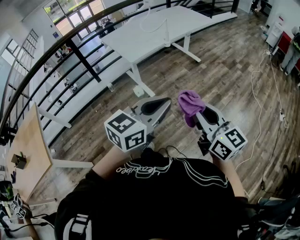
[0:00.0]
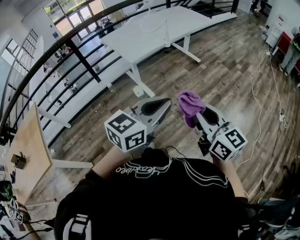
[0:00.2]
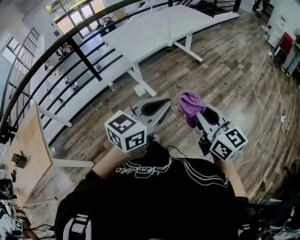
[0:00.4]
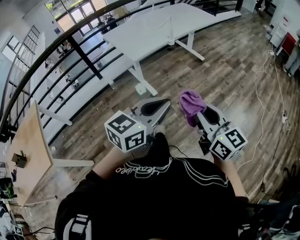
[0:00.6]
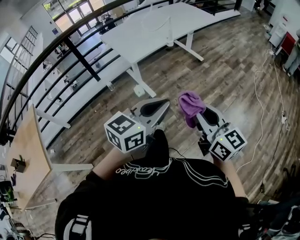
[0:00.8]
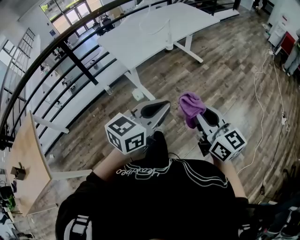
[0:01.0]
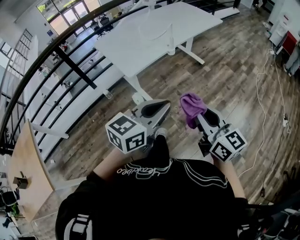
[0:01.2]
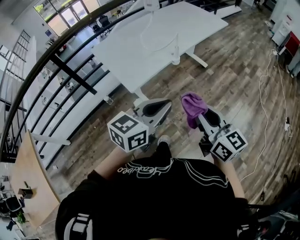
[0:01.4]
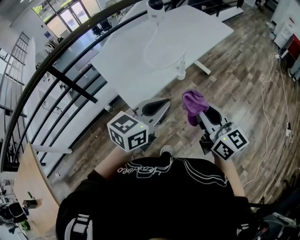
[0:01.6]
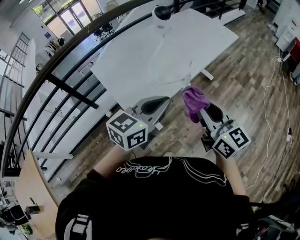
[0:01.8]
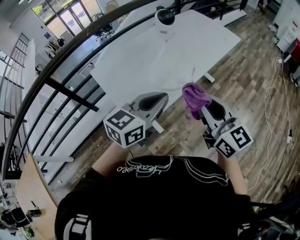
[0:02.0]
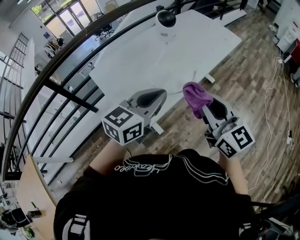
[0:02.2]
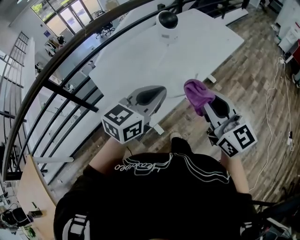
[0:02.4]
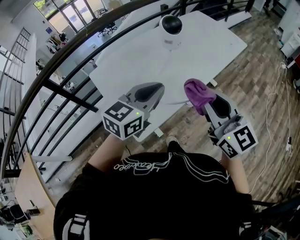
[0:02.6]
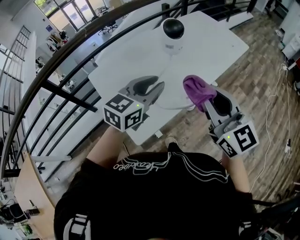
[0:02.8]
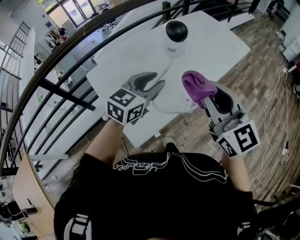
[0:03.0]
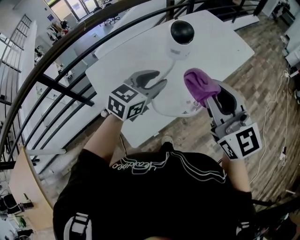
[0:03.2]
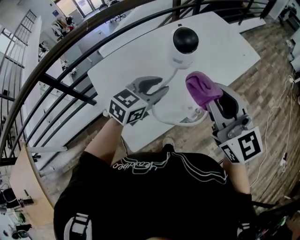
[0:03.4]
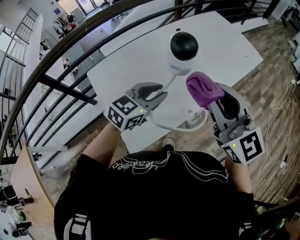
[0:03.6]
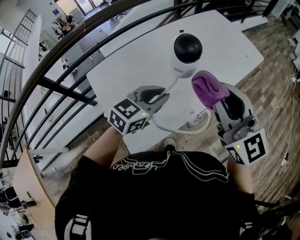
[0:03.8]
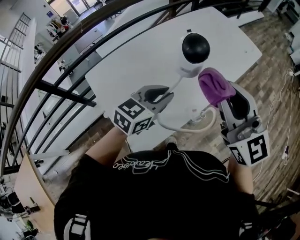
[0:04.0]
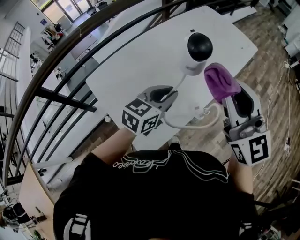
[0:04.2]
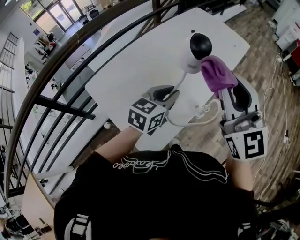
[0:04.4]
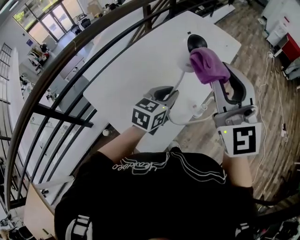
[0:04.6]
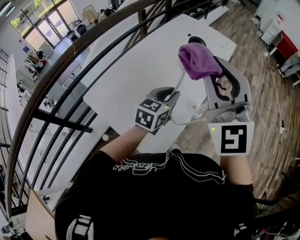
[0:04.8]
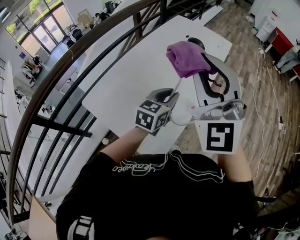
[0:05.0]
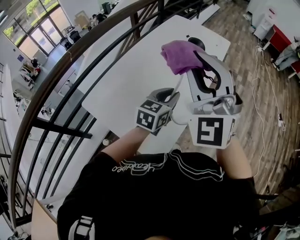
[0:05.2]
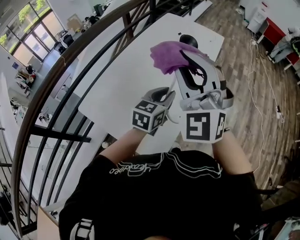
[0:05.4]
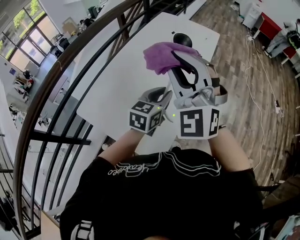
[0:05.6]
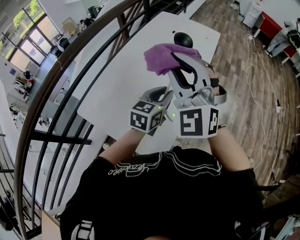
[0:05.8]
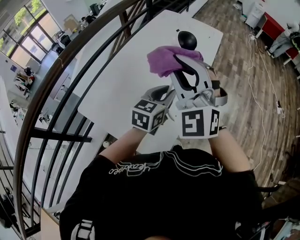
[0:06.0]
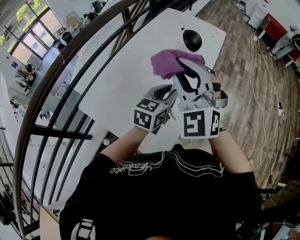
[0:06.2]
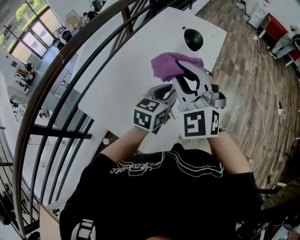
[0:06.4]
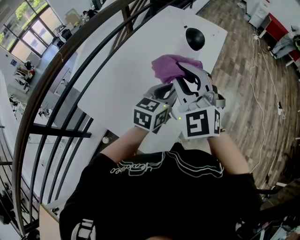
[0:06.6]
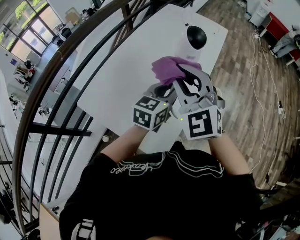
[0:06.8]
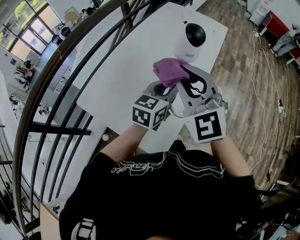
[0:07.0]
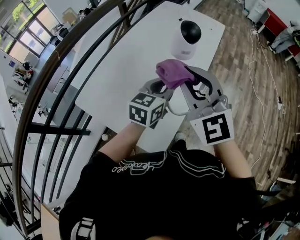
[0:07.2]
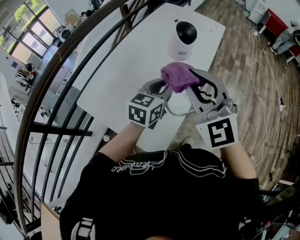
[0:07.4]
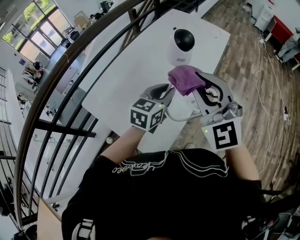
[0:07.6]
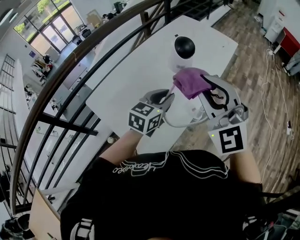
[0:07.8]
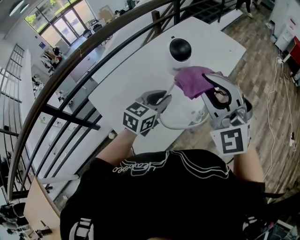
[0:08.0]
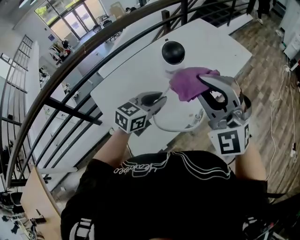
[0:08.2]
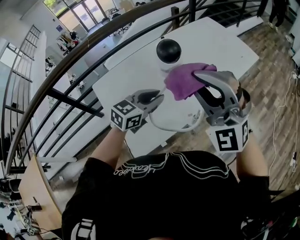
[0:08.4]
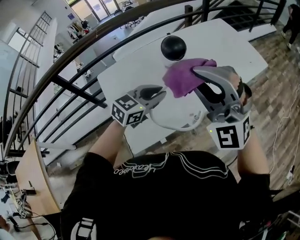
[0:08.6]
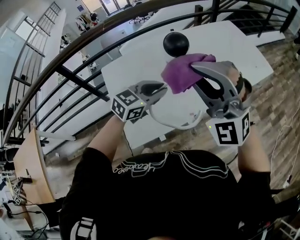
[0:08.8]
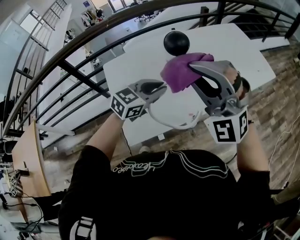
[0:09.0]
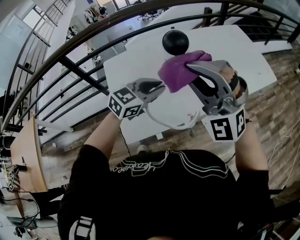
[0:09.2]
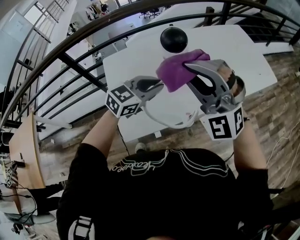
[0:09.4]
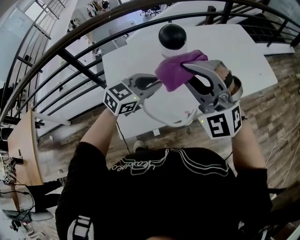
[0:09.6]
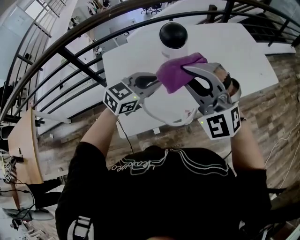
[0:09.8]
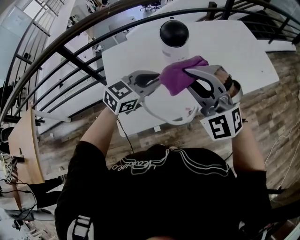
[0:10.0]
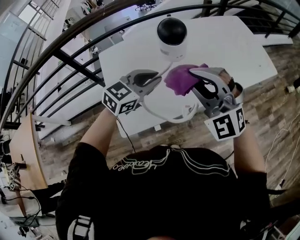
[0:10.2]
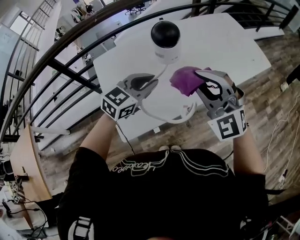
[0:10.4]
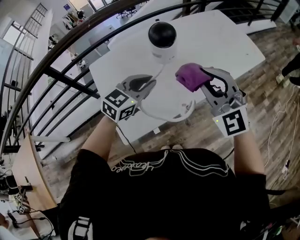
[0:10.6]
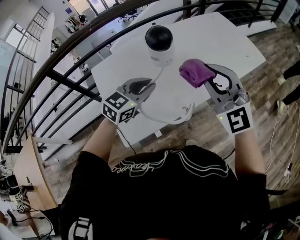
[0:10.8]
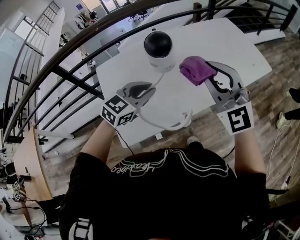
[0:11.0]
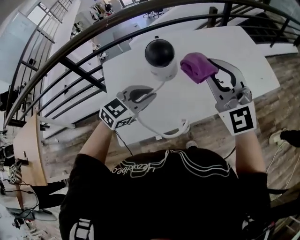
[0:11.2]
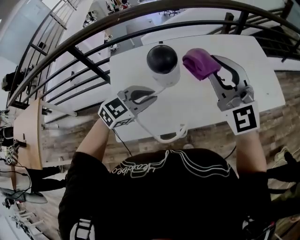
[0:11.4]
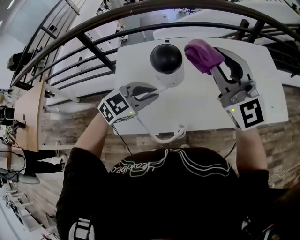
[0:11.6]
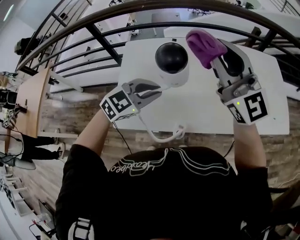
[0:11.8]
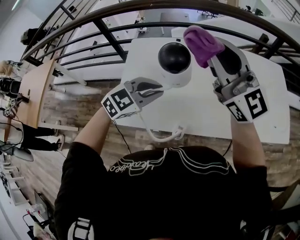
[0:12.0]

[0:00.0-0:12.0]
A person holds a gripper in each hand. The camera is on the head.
0.0 to 1.6 s: The two grippers travel together, forward, about 50 cm.
1.6 to 3.0 s: Both grippers travel together forward, approximately 30 cm. The left gripper opens up, while the right gripper changes its angle by some 20 degrees.
3.0 to 4.4 s: The left gripper travels downward by about 5 cm. The right gripper goes roughly 5 cm forward, and turns by some 20 degrees.
4.4 to 6.0 s: The right gripper is displaced to the left by roughly 10 cm, and turns by some 40 degrees.
6.0 to 7.6 s: The right gripper goes approximately 5 cm to the right.
7.6 to 9.0 s: The right gripper moves about 5 cm, and rotates approximately 50 degrees.
9.0 to 10.4 s: The right gripper is displaced downward by about 10 cm, and changes its angle by some 20 degrees.
10.4 to 12.0 s: The left gripper changes its angle by about 20 degrees. The right gripper moves approximately 20 cm, and changes its angle by some 60 degrees.

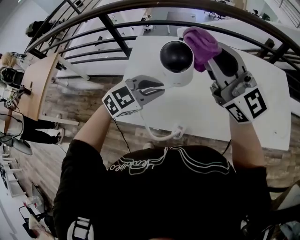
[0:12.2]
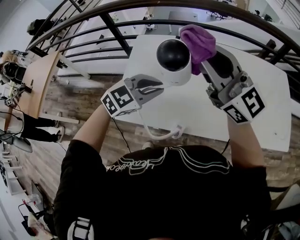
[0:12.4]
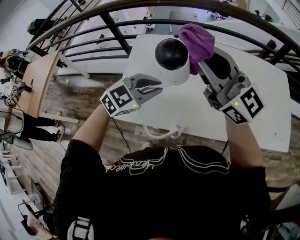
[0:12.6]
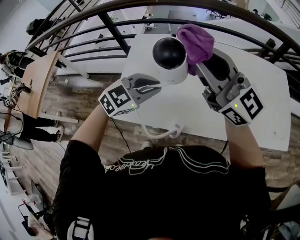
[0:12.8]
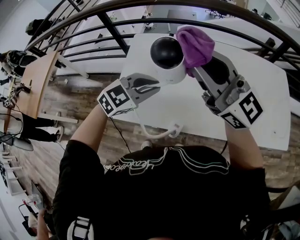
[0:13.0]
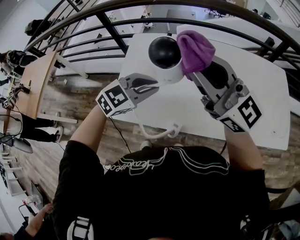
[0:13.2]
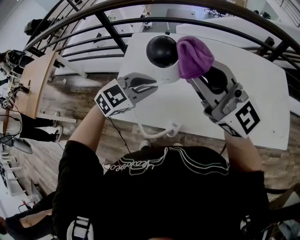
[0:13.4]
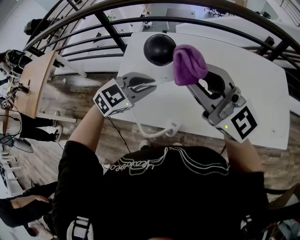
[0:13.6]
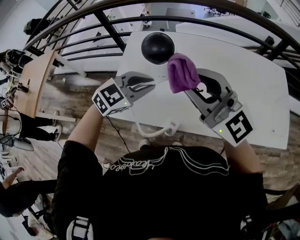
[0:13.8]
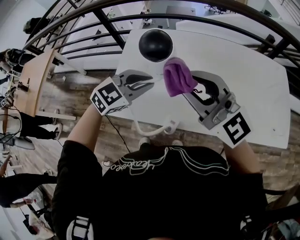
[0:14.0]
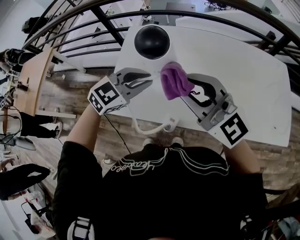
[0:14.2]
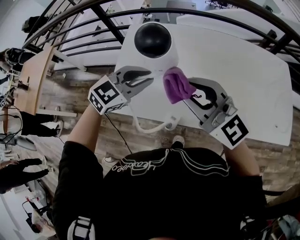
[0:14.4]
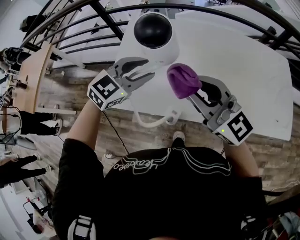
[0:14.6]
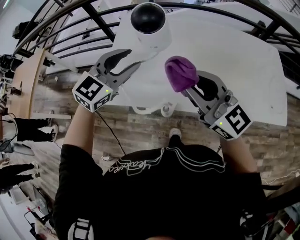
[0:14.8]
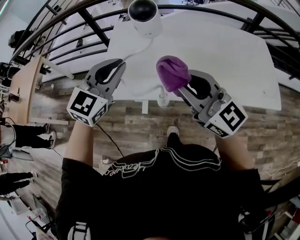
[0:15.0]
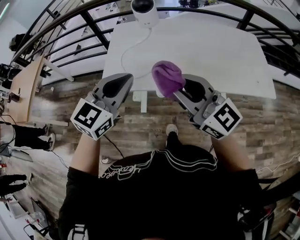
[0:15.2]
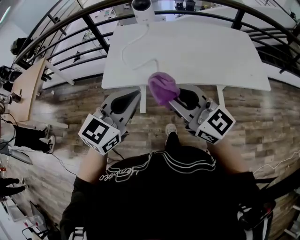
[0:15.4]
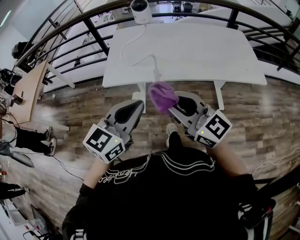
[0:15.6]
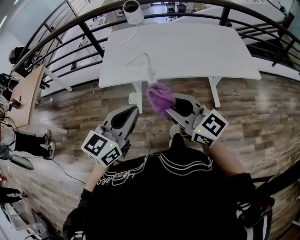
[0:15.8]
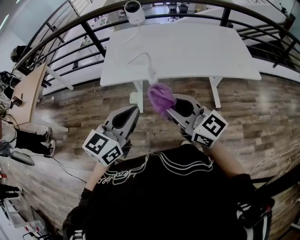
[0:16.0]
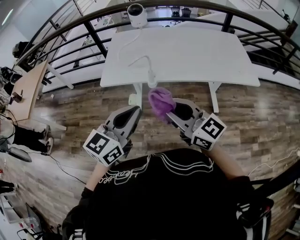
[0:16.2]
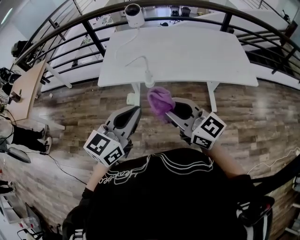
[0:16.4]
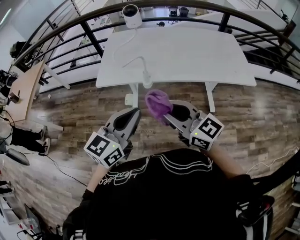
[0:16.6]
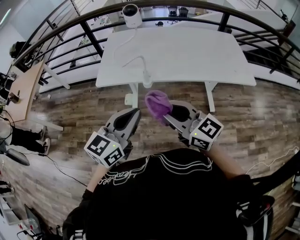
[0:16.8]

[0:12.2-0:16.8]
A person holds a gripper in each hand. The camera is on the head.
12.2 to 13.8 s: The right gripper moves backward and downward, approximately 10 cm.
13.8 to 15.2 s: The right gripper is displaced backward by about 25 cm; the left gripper travels backward and upward by some 25 cm, swivels approximately 30 degrees, and opens, then closes once more.
15.2 to 16.8 s: Both grippers travel together backward, some 20 cm. The left gripper swivels about 20 degrees.

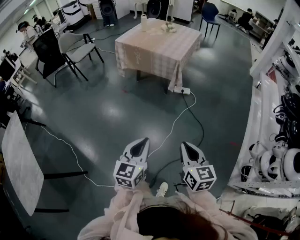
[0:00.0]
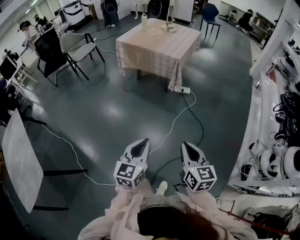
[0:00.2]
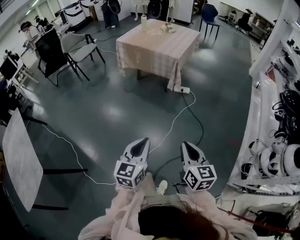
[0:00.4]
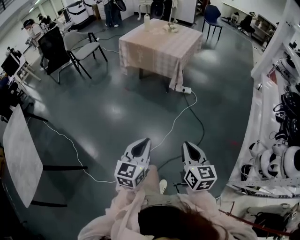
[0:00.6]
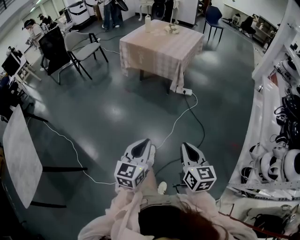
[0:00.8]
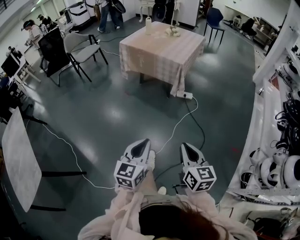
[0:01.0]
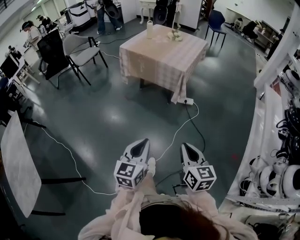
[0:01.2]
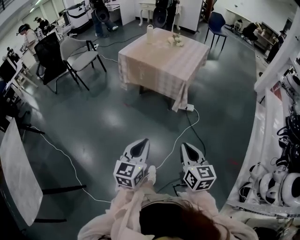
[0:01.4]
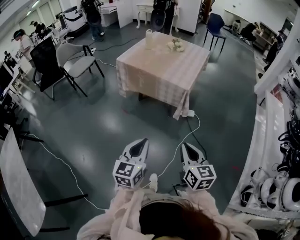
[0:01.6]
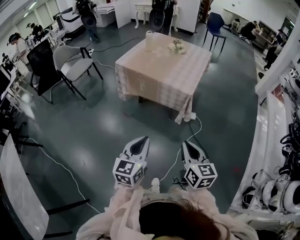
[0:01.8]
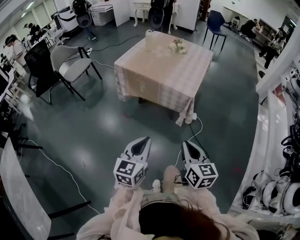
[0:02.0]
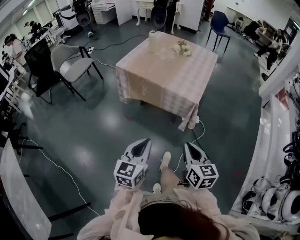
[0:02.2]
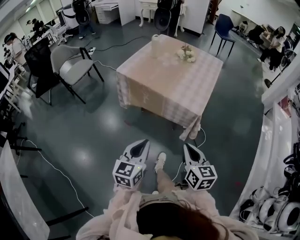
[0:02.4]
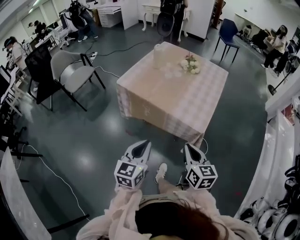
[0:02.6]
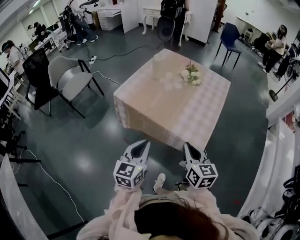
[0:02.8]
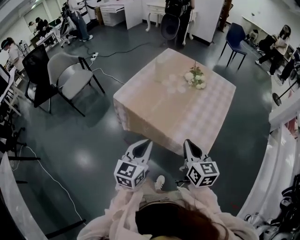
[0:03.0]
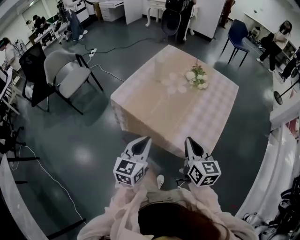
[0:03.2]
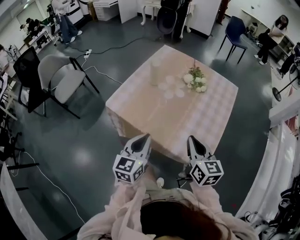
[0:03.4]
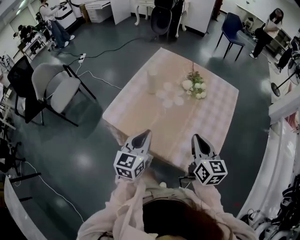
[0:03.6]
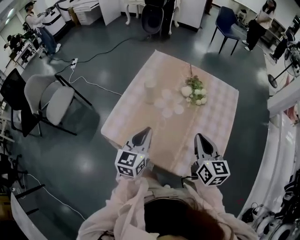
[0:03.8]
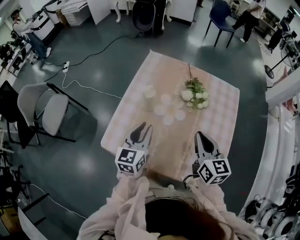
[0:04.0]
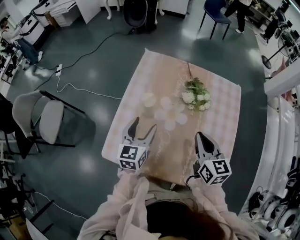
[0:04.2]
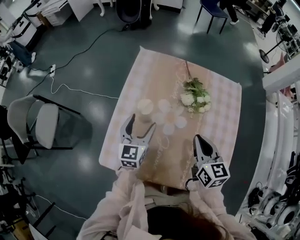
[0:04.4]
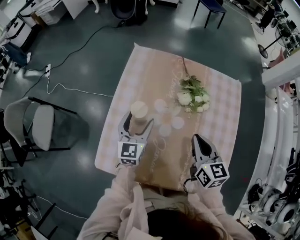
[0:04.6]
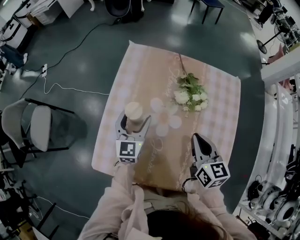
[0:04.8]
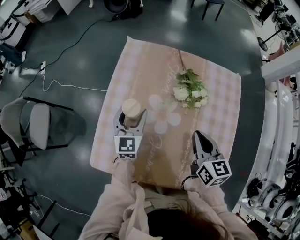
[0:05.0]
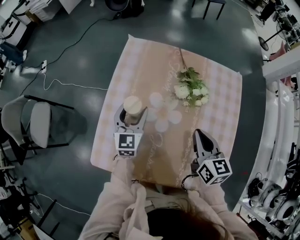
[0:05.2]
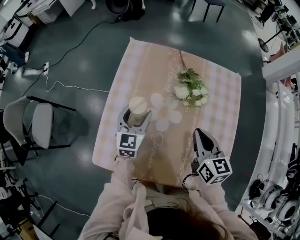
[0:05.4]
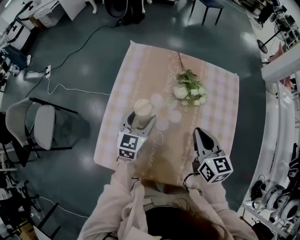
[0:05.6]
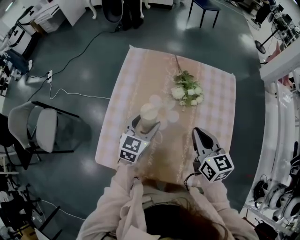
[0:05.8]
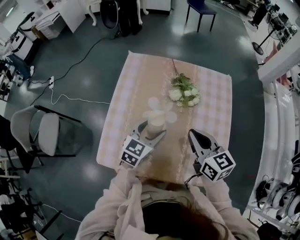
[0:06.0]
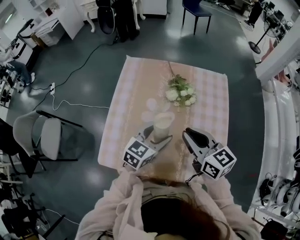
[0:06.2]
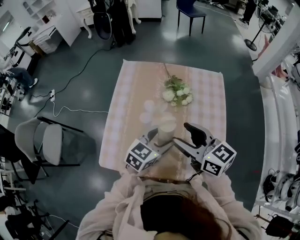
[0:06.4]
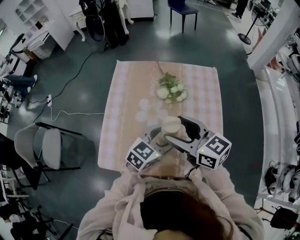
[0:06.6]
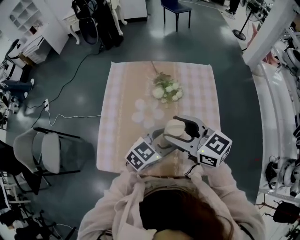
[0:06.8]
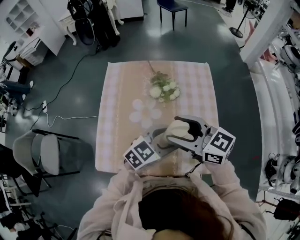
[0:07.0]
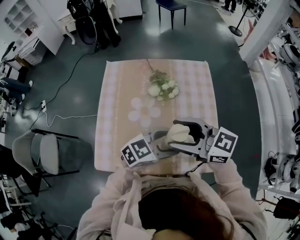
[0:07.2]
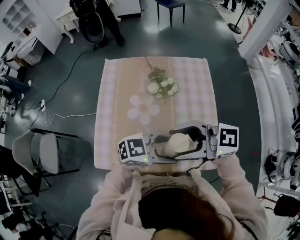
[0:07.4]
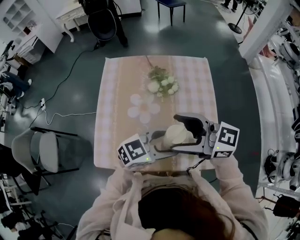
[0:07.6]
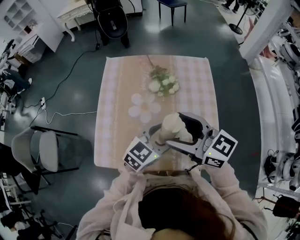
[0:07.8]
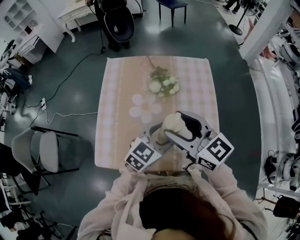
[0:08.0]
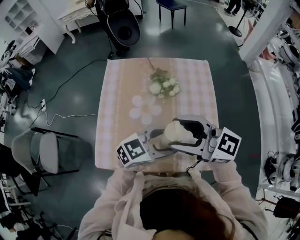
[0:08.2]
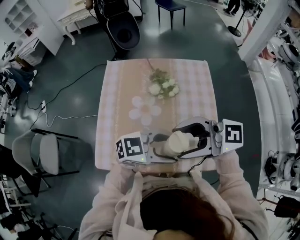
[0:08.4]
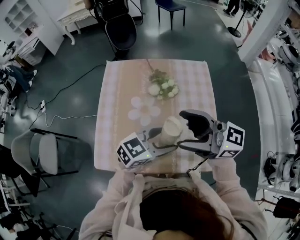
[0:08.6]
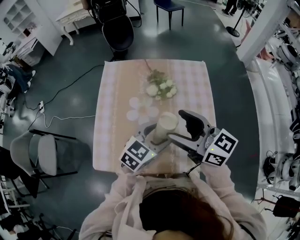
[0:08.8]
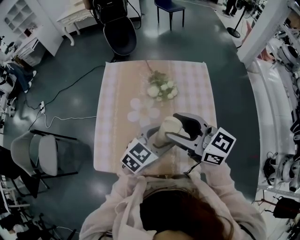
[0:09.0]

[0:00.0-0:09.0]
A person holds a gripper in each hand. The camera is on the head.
0.0 to 1.6 s: The grippers both shift forward by about 25 cm.
1.6 to 3.0 s: Both grippers are carried forward, some 50 cm.
3.0 to 4.4 s: Both grippers travel together forward, approximately 40 cm. The left gripper opens its fingers.
4.4 to 6.0 s: The left gripper shifts roughly 10 cm to the right, and rotates about 30 degrees.
6.0 to 7.6 s: The left gripper moves roughly 20 cm, and rotates approximately 50 degrees, while the right gripper moves upward, some 10 cm, changes its angle by approximately 40 degrees, and opens up.
7.6 to 9.0 s: The left gripper ends up some 5 cm from where it was, and rotates roughly 20 degrees.
